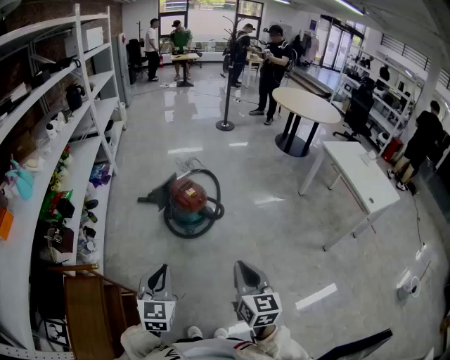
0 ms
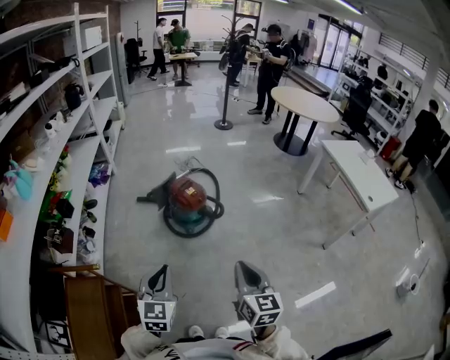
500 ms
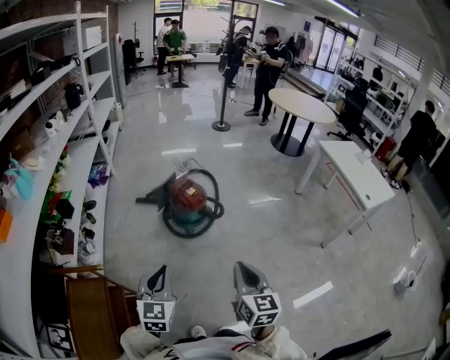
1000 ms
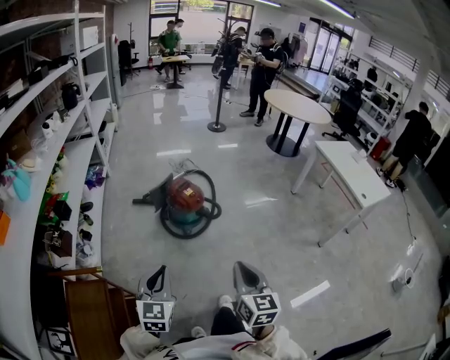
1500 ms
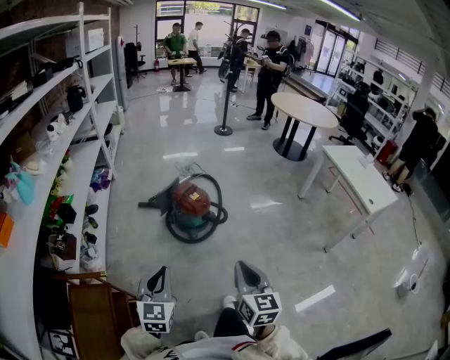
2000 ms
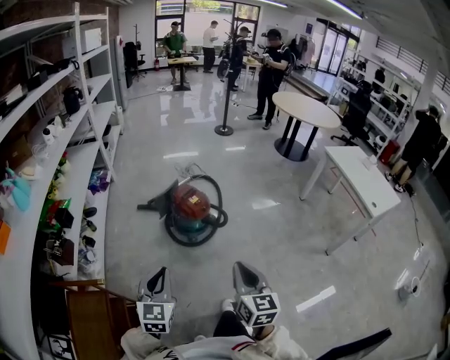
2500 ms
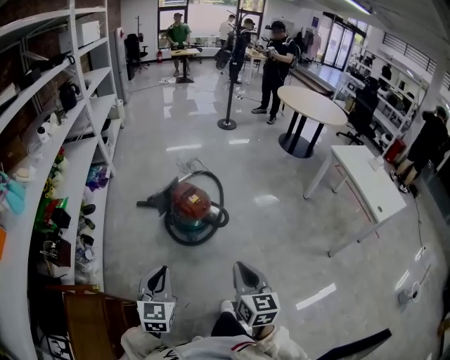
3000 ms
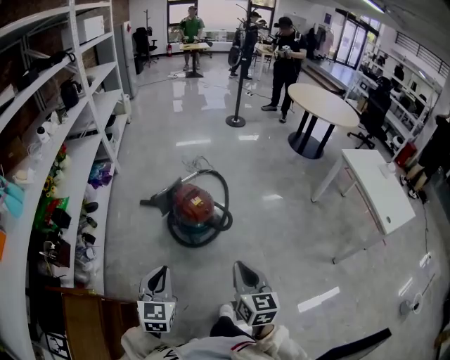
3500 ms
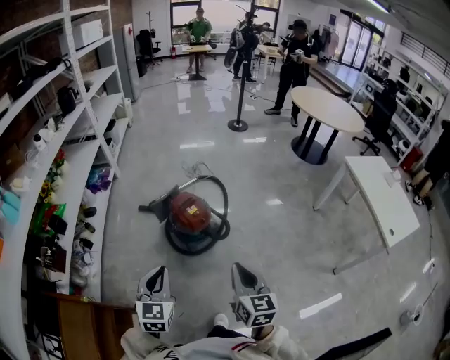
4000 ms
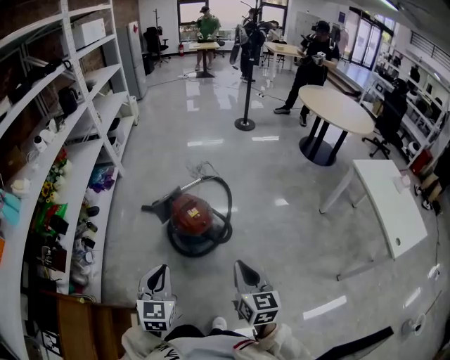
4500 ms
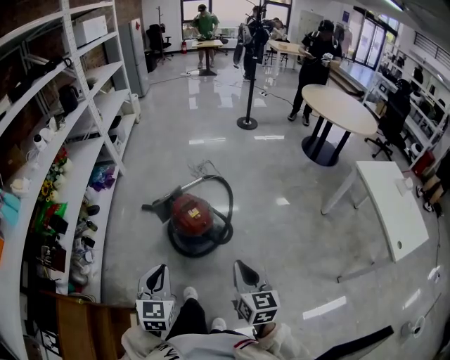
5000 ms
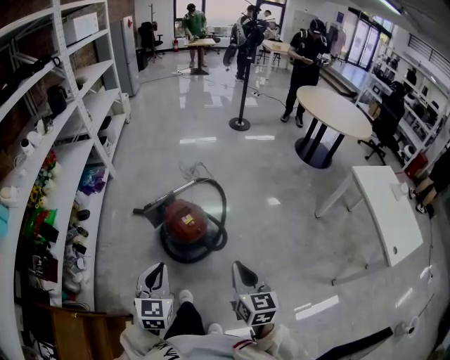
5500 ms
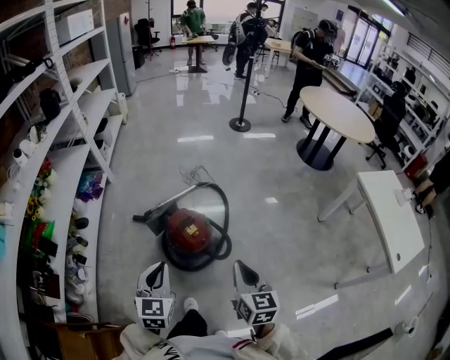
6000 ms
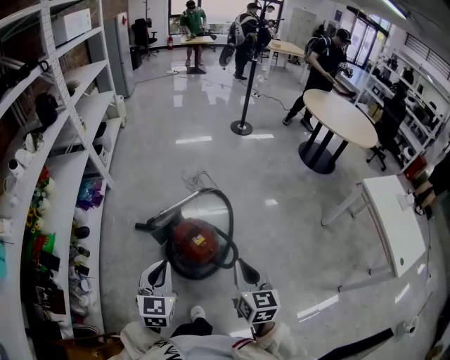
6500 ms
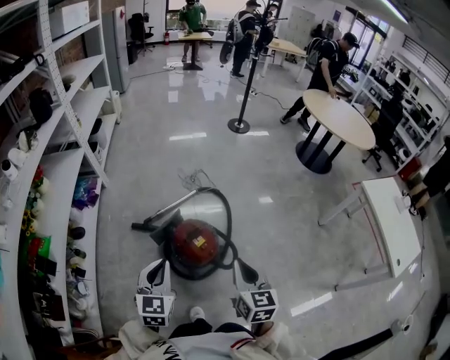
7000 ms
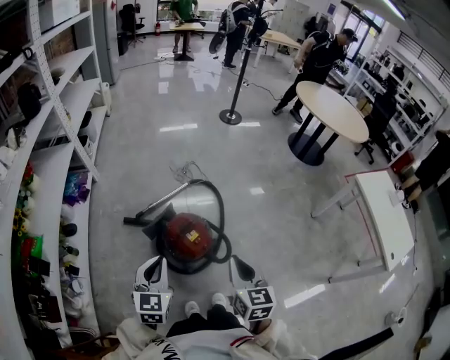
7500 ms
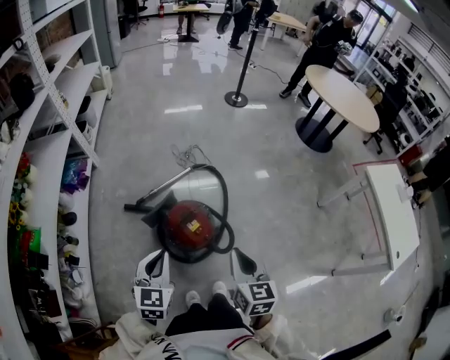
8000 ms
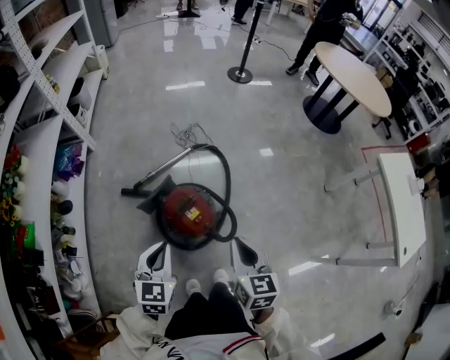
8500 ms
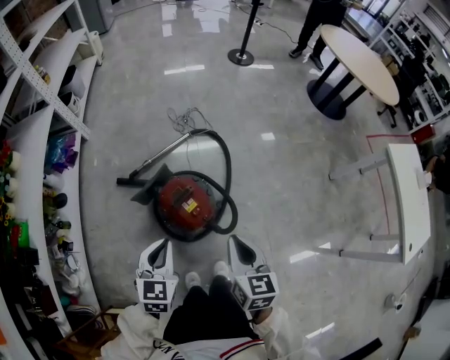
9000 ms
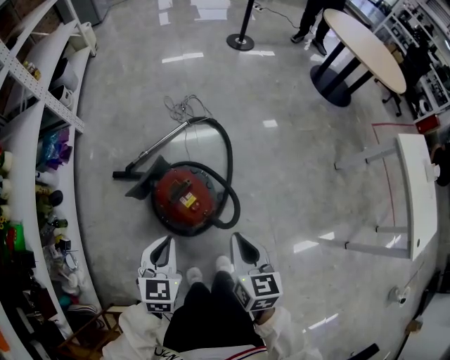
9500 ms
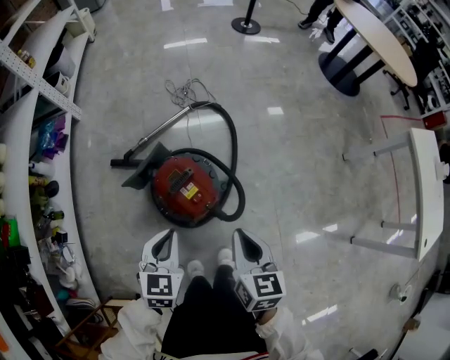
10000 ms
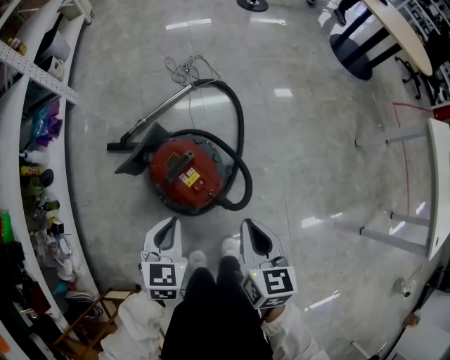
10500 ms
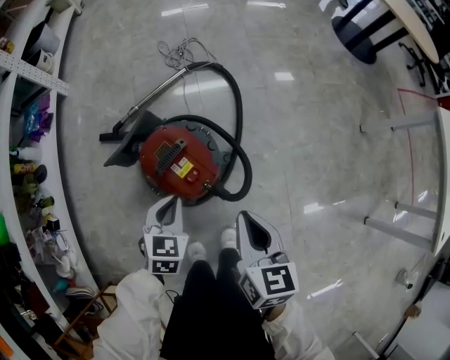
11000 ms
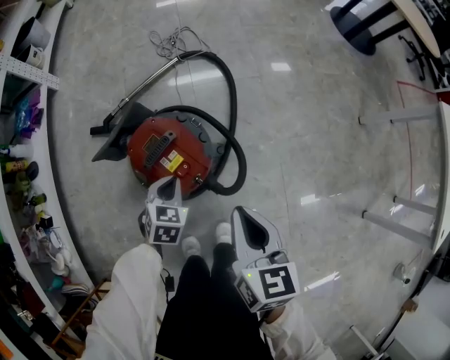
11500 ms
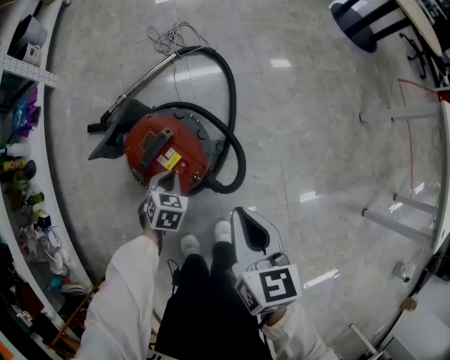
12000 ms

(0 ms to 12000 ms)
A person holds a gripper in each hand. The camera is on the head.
0 ms - 2000 ms: The left gripper is displaced to the left by approximately 5 cm, while the right gripper changes place by some 5 cm.
2000 ms - 4000 ms: Both grippers move forward and to the right, roughly 20 cm.
4000 ms - 6000 ms: Both grippers travel together forward, approximately 15 cm.
6000 ms - 8000 ms: The left gripper is displaced forward by about 10 cm. The right gripper shifts roughly 10 cm forward and to the left.
8000 ms - 10000 ms: The grippers both shift downward by some 15 cm.
10000 ms - 12000 ms: The right gripper is displaced downward by some 5 cm. The left gripper is displaced downward by approximately 25 cm, and swivels approximately 20 degrees.

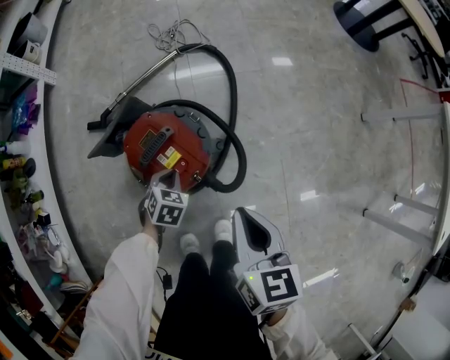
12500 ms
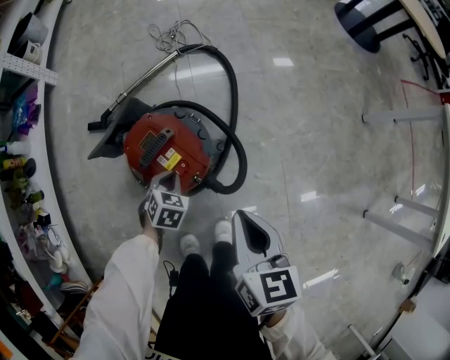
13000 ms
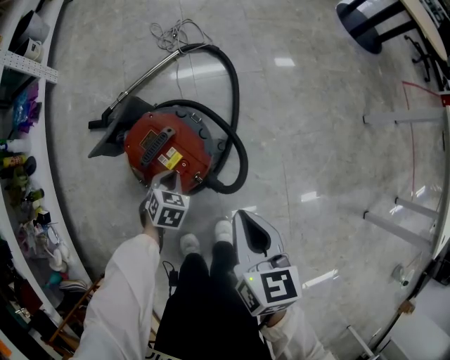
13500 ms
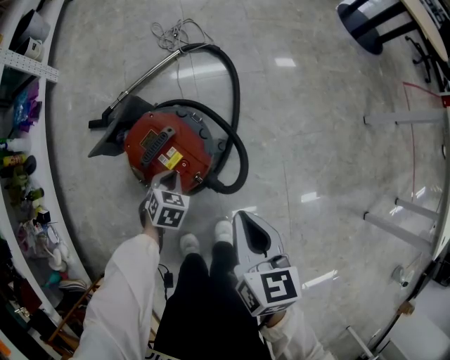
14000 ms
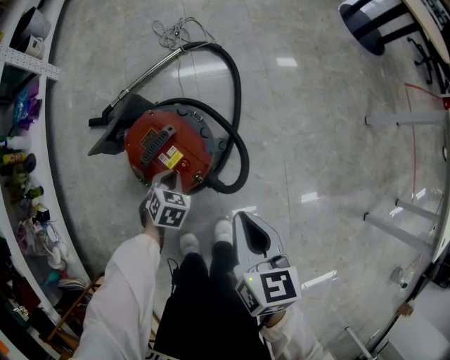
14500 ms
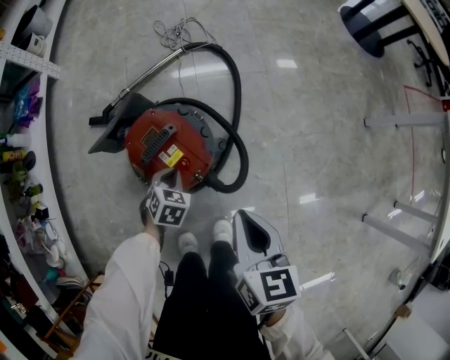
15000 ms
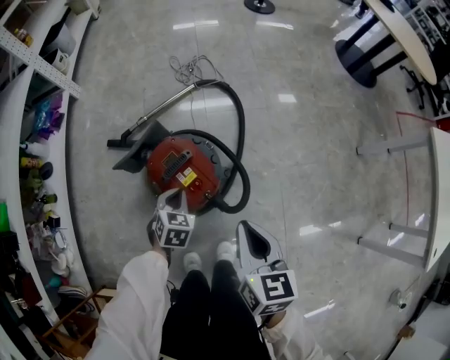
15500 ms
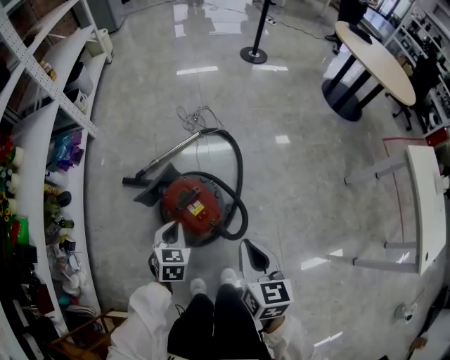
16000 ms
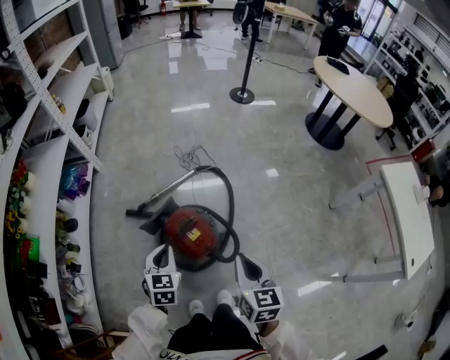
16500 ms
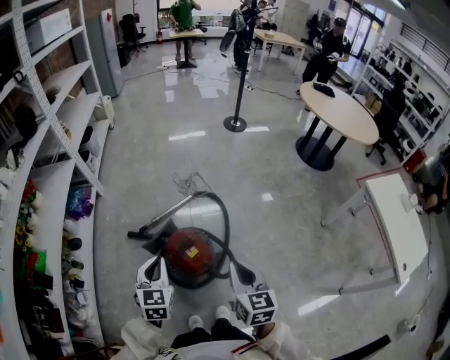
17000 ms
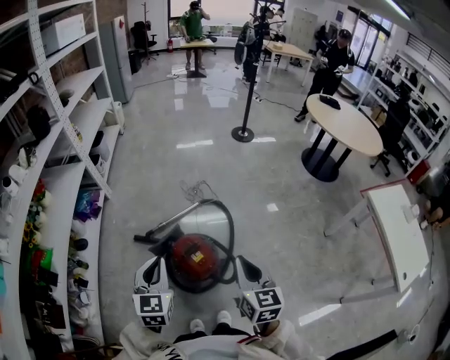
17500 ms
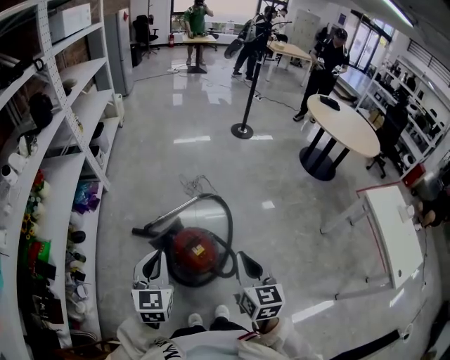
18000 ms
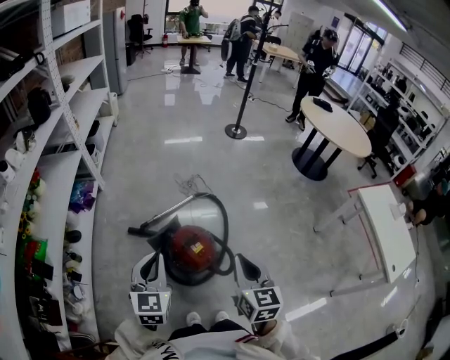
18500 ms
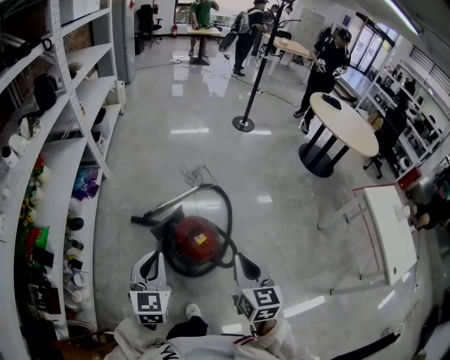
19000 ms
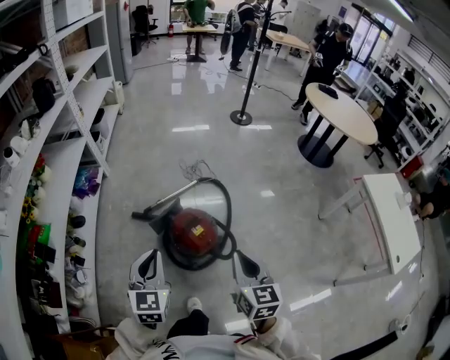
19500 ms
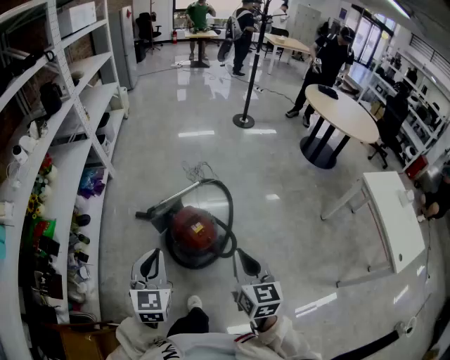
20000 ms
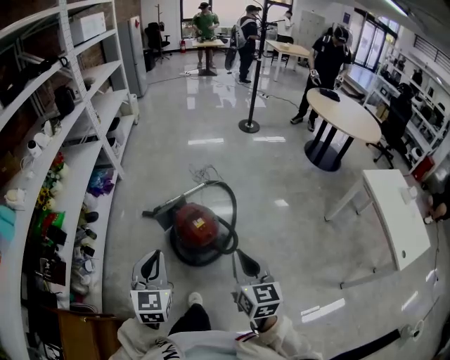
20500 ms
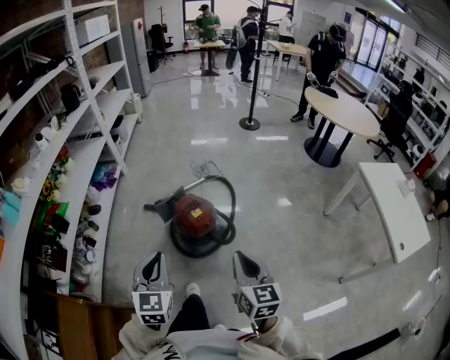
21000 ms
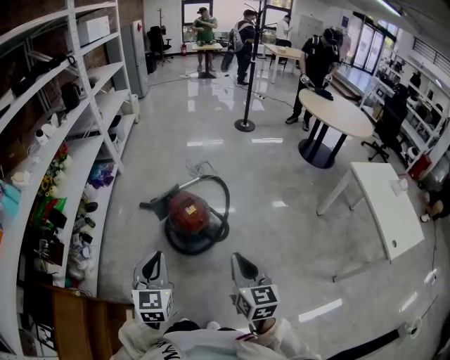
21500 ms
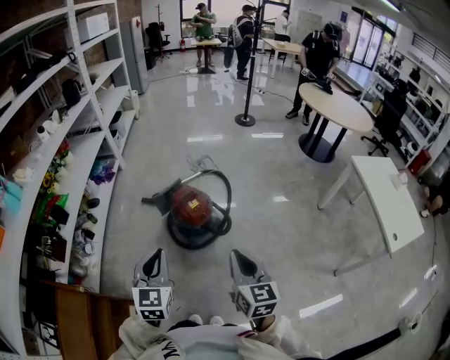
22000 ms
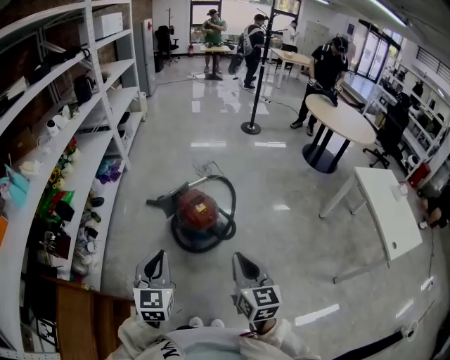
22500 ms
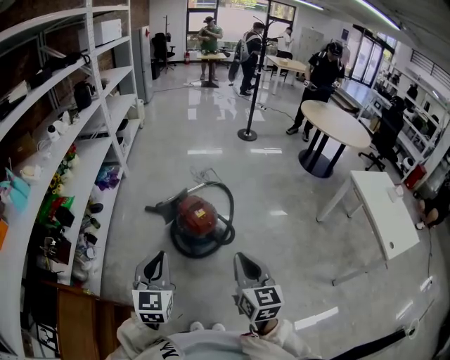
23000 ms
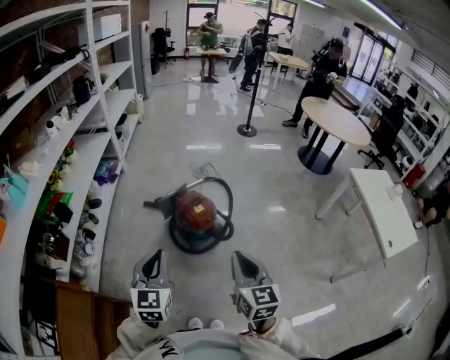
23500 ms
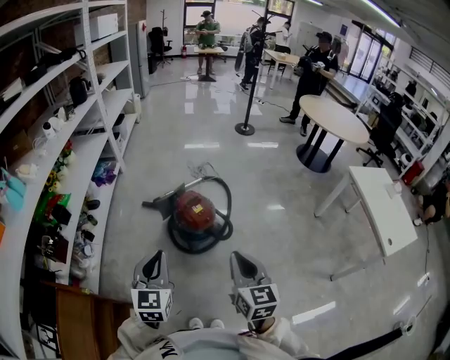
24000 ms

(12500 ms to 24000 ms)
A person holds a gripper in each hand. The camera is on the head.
12500 ms - 14500 ms: There are only small adjustments of the grippers.
14500 ms - 16500 ms: The left gripper travels upward by some 35 cm, and turns by some 30 degrees. Meanwhile the right gripper travels upward by roughly 20 cm.
16500 ms - 18500 ms: The right gripper goes some 15 cm upward and to the left. Meanwhile the left gripper travels upward by some 20 cm.
18500 ms - 20000 ms: Both grippers travel together backward, some 10 cm.
20000 ms - 22000 ms: The grippers both shift backward by about 20 cm.
22000 ms - 24000 ms: The left gripper shifts by about 5 cm, while the right gripper changes place by some 5 cm.

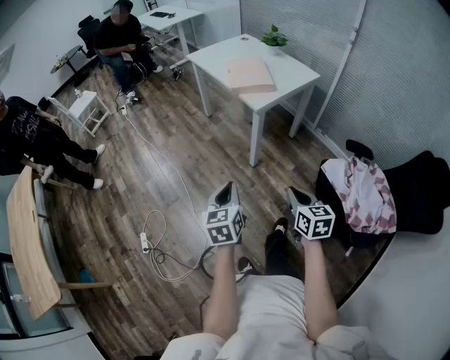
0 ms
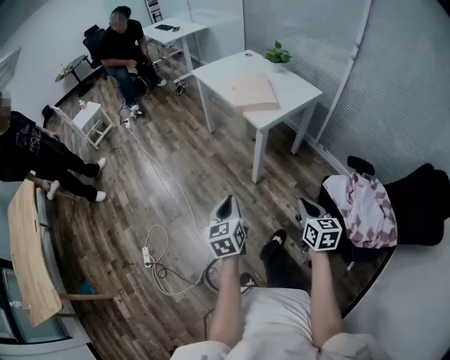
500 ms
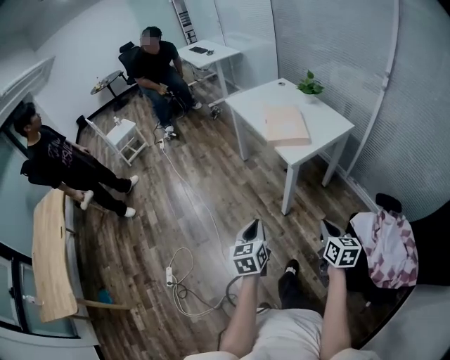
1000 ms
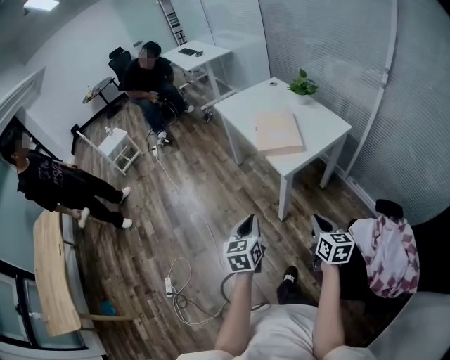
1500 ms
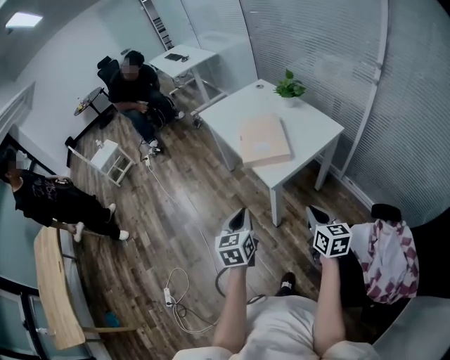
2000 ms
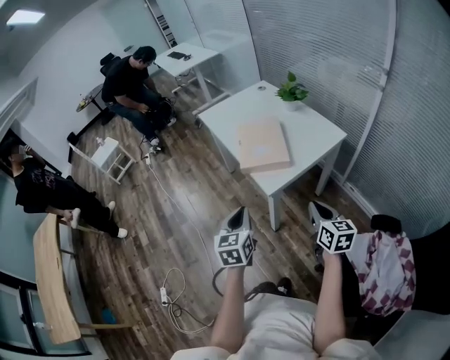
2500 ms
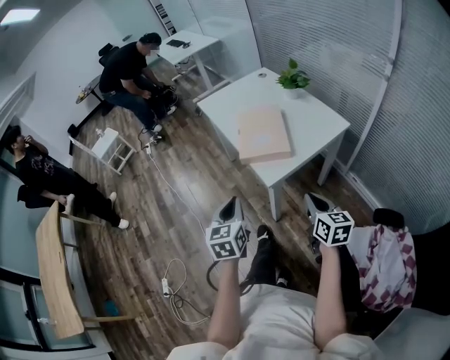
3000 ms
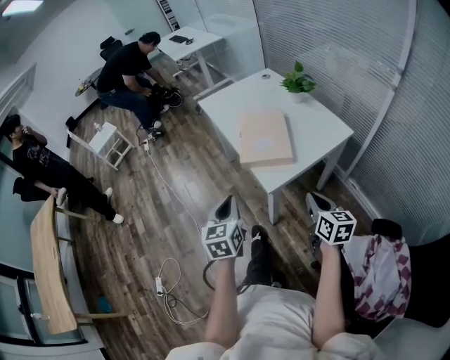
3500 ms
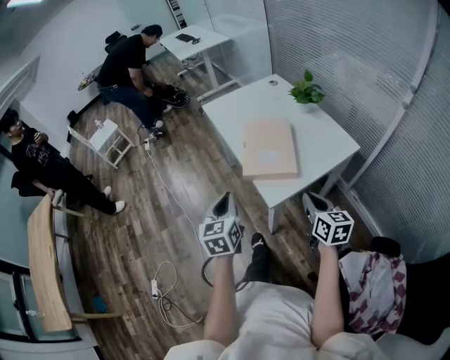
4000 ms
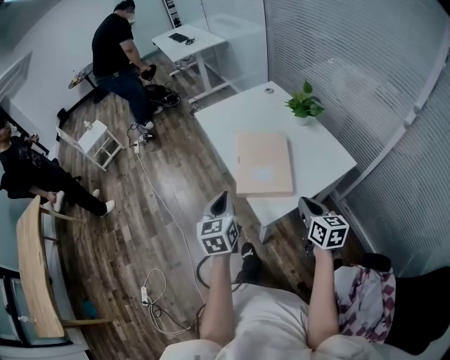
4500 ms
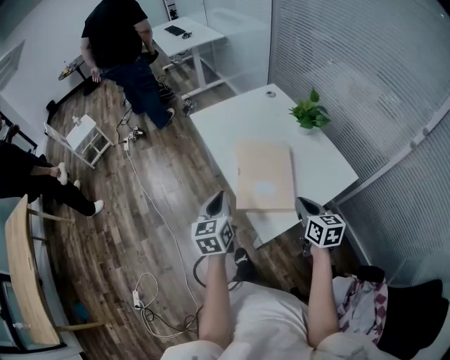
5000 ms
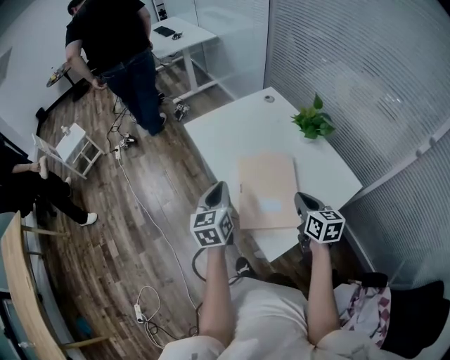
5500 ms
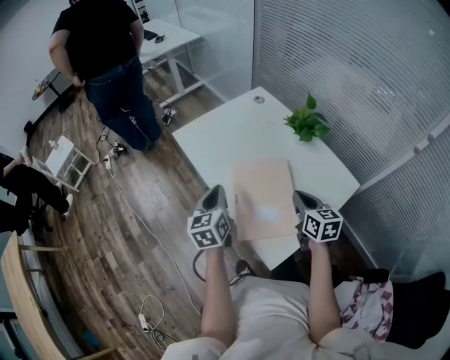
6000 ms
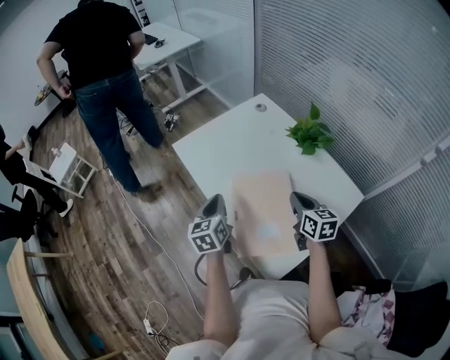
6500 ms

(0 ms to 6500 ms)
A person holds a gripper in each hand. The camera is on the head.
0 ms - 2000 ms: Both grippers travel together forward, some 30 cm.
2000 ms - 4500 ms: The two grippers go some 25 cm forward.
4500 ms - 6500 ms: Both grippers move forward, roughly 30 cm.
